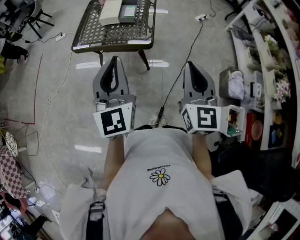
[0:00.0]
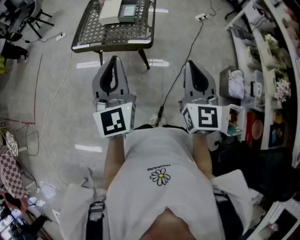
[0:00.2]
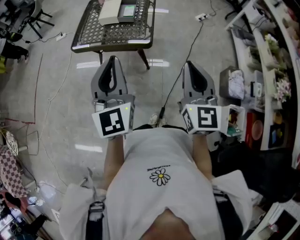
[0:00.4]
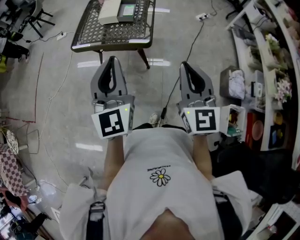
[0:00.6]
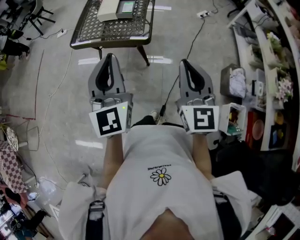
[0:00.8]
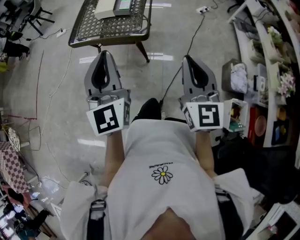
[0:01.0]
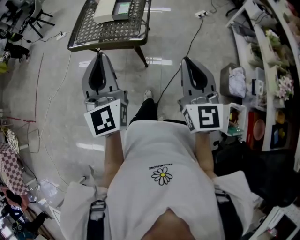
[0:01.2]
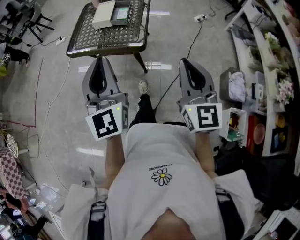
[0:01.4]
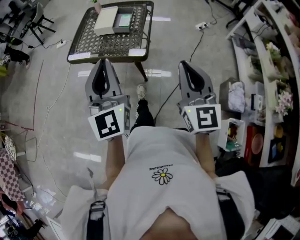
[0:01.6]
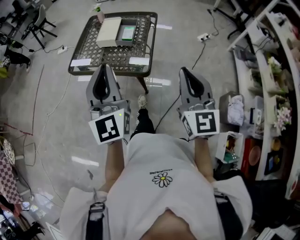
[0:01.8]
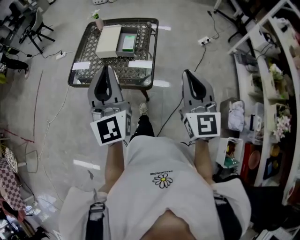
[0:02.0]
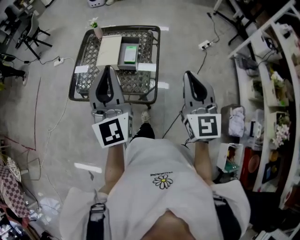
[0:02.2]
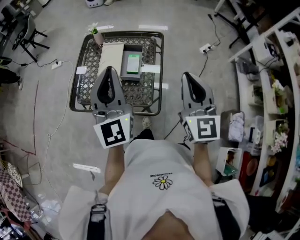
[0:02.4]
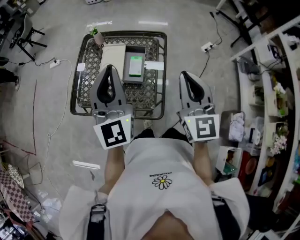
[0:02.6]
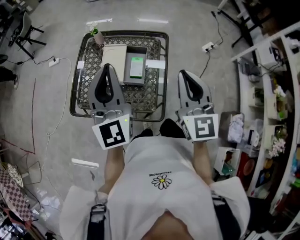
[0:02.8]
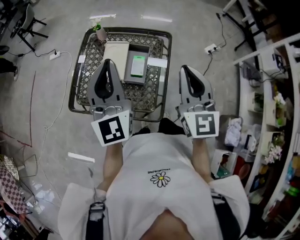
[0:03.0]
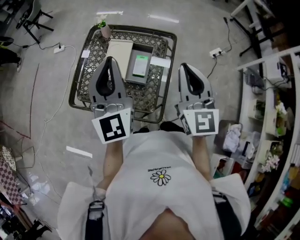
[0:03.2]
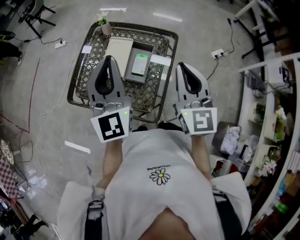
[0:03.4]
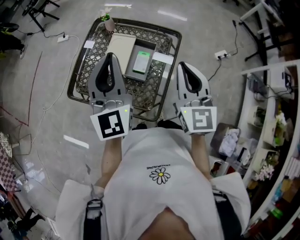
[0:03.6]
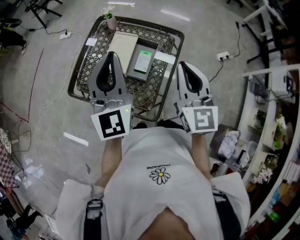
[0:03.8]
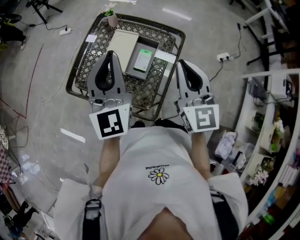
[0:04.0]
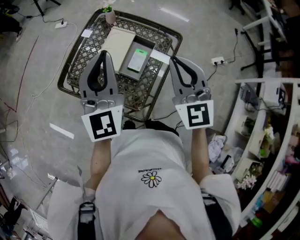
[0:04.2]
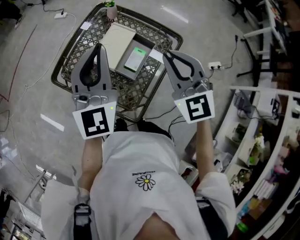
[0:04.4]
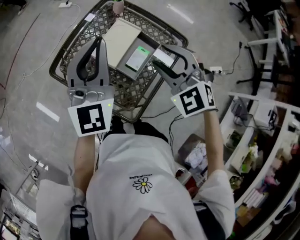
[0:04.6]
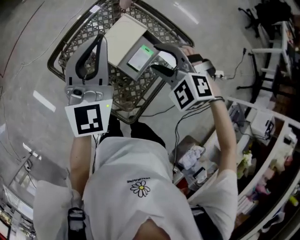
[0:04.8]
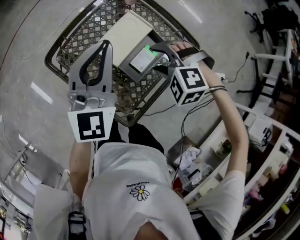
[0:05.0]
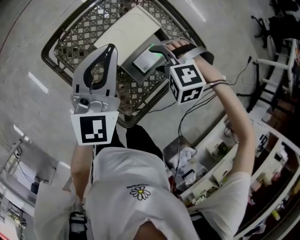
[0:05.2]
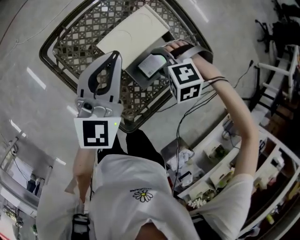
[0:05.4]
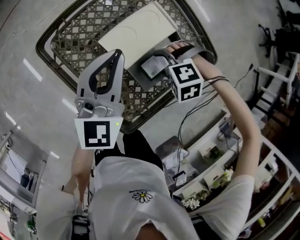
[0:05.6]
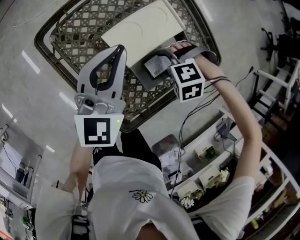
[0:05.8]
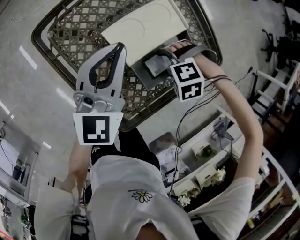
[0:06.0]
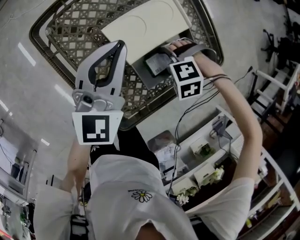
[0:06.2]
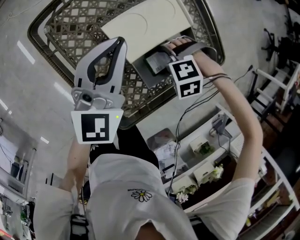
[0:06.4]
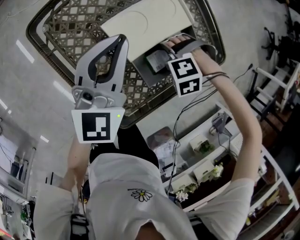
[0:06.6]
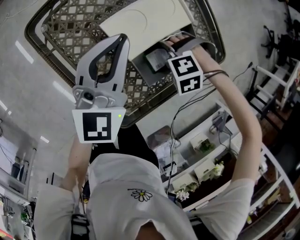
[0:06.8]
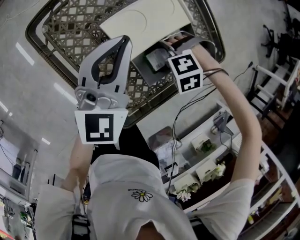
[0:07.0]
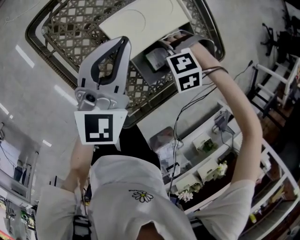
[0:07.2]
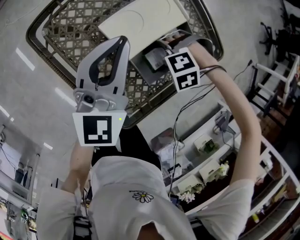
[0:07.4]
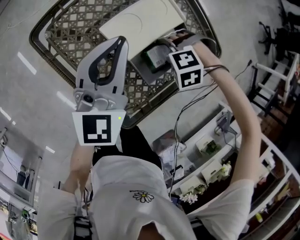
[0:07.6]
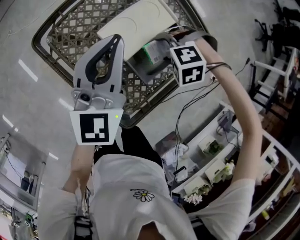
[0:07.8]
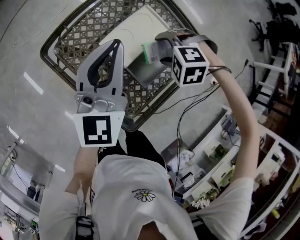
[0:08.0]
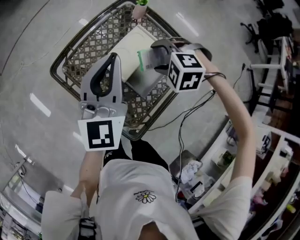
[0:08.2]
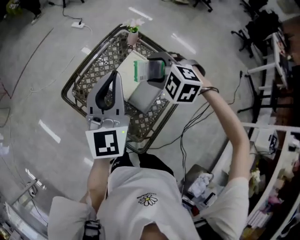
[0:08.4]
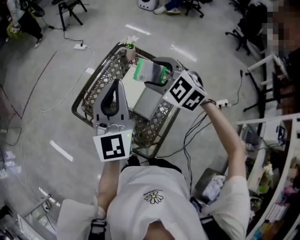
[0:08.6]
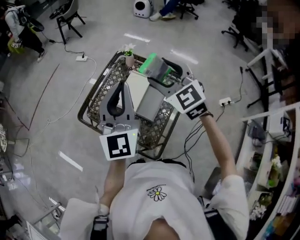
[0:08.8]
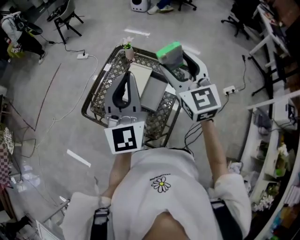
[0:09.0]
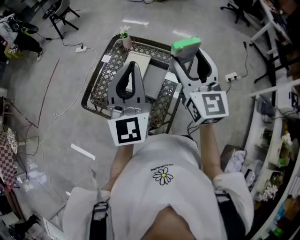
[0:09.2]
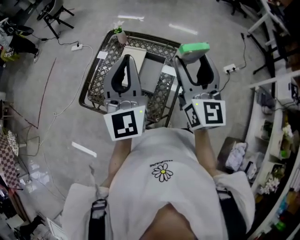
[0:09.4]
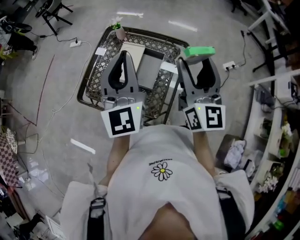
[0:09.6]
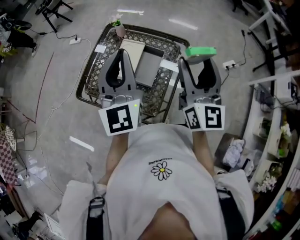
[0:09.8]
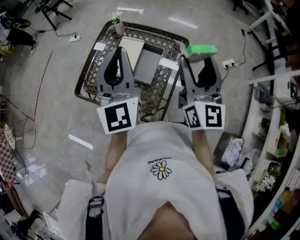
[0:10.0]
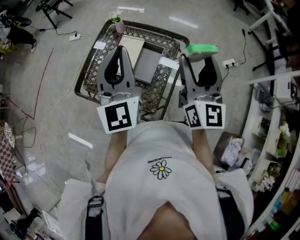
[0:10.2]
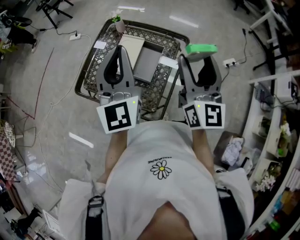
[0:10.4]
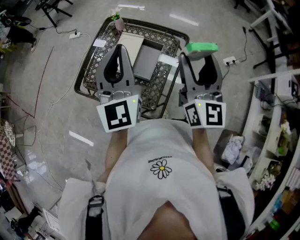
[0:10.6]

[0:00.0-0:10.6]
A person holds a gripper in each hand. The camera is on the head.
0:00.0 to 0:01.6: Both grippers move forward, about 5 cm.
0:01.6 to 0:03.0: The pair of grippers is taken forward, about 40 cm.
0:03.0 to 0:04.6: The right gripper changes place by approximately 15 cm, turns by some 70 degrees, and opens its fingers. The left gripper moves roughly 5 cm.
0:04.6 to 0:06.0: Both grippers travel together downward, roughly 30 cm. The right gripper tips its fingers downward by roughly 50 degrees.
0:06.0 to 0:07.6: There are only small adjustments of the grippers.
0:07.6 to 0:09.0: The left gripper travels upward by roughly 25 cm, while the right gripper is displaced upward by roughly 50 cm, and points its fingers about 80 degrees further upward.
0:09.0 to 0:10.6: The right gripper shifts roughly 15 cm backward and to the right, and changes its angle by about 30 degrees.

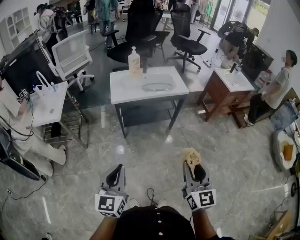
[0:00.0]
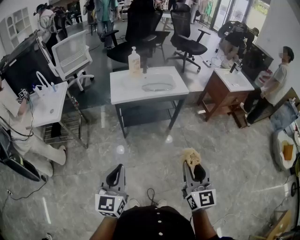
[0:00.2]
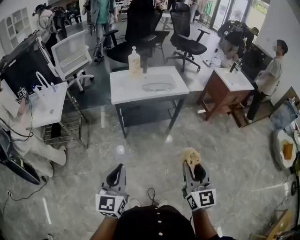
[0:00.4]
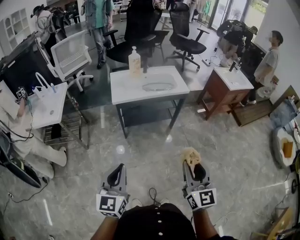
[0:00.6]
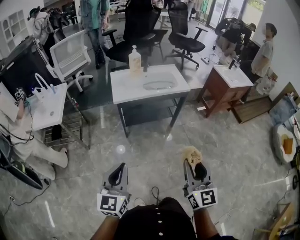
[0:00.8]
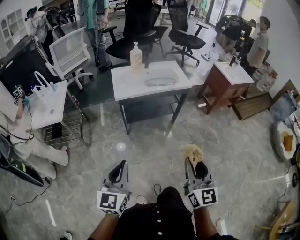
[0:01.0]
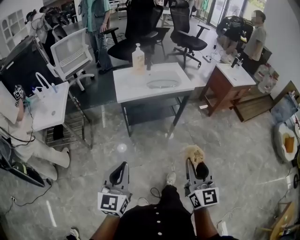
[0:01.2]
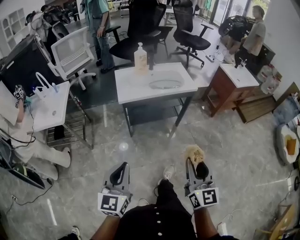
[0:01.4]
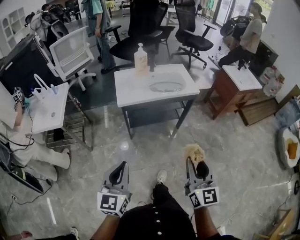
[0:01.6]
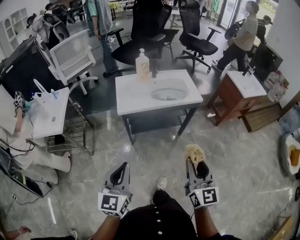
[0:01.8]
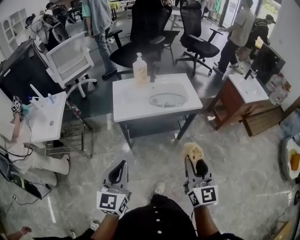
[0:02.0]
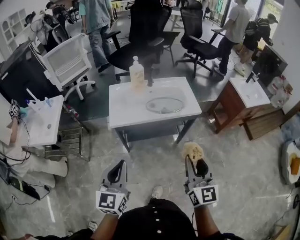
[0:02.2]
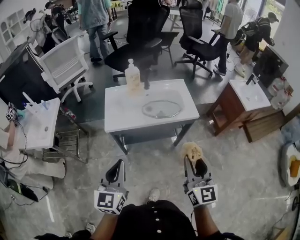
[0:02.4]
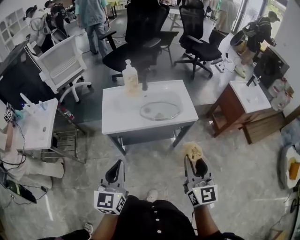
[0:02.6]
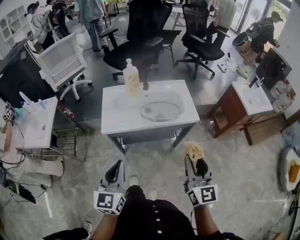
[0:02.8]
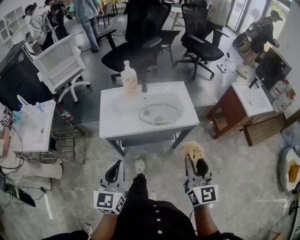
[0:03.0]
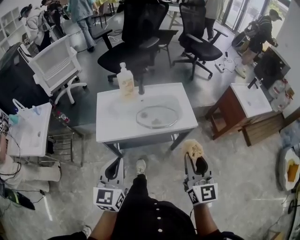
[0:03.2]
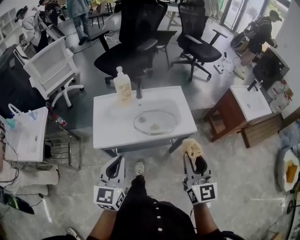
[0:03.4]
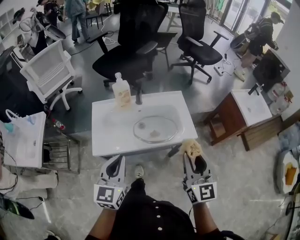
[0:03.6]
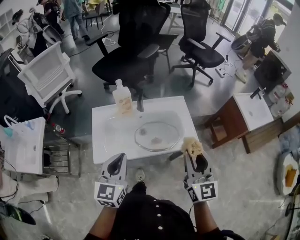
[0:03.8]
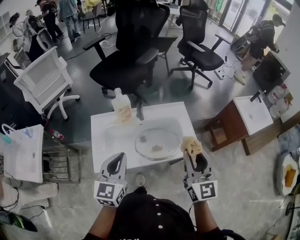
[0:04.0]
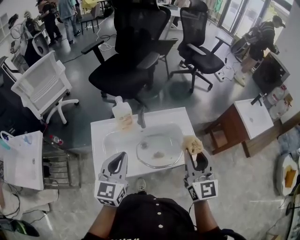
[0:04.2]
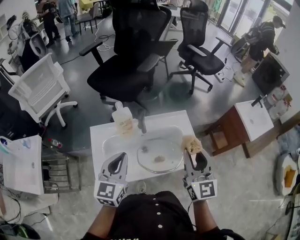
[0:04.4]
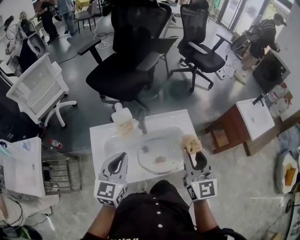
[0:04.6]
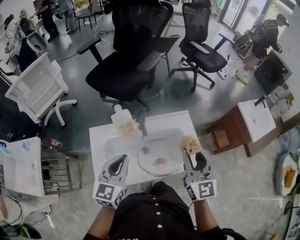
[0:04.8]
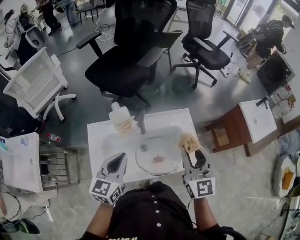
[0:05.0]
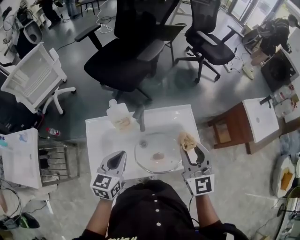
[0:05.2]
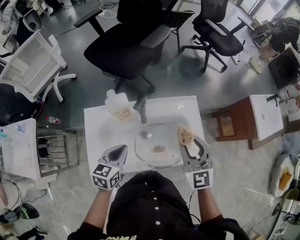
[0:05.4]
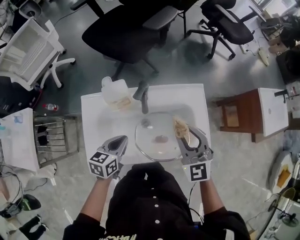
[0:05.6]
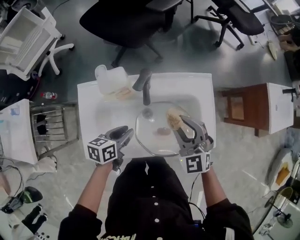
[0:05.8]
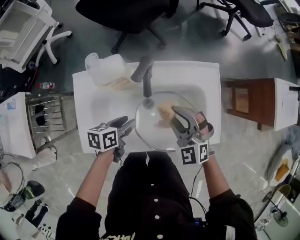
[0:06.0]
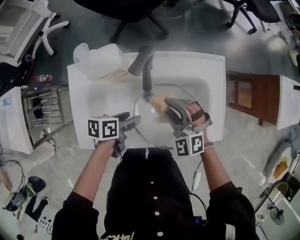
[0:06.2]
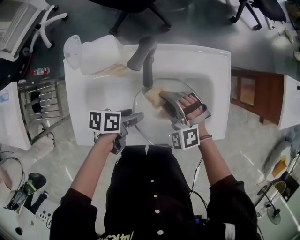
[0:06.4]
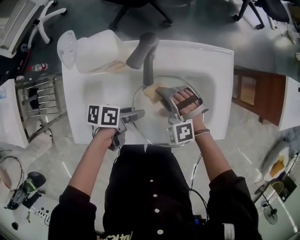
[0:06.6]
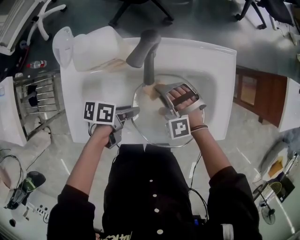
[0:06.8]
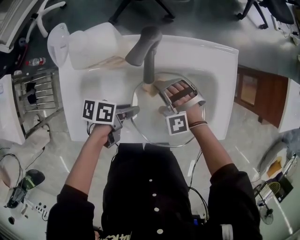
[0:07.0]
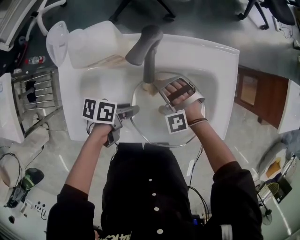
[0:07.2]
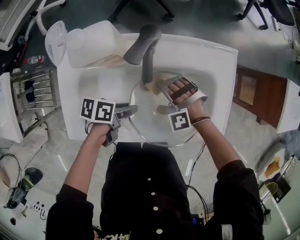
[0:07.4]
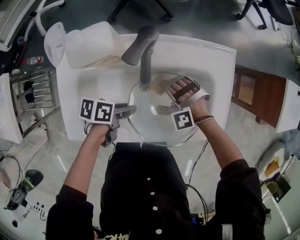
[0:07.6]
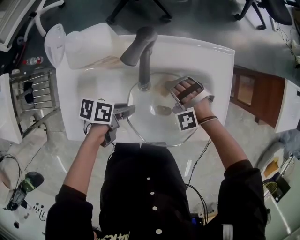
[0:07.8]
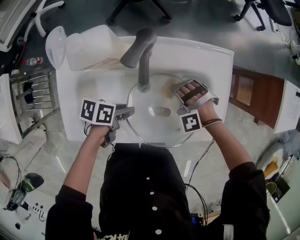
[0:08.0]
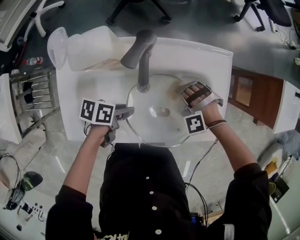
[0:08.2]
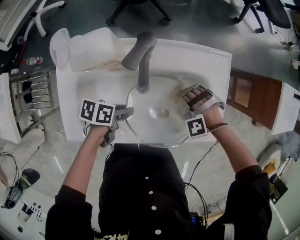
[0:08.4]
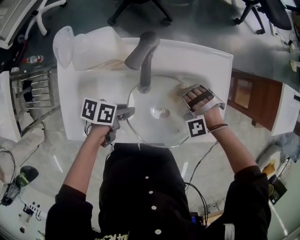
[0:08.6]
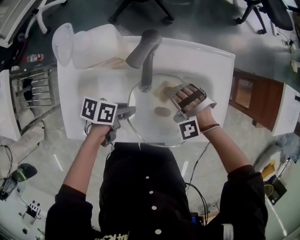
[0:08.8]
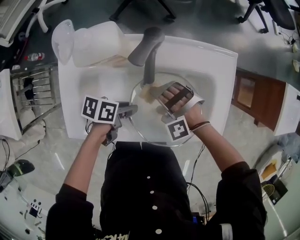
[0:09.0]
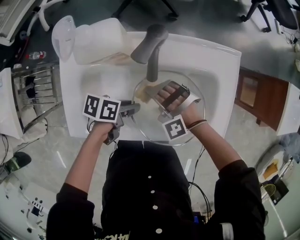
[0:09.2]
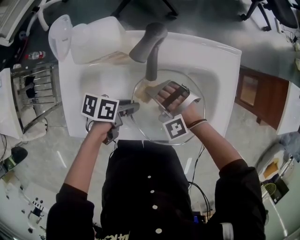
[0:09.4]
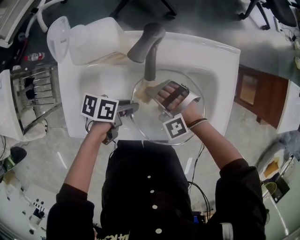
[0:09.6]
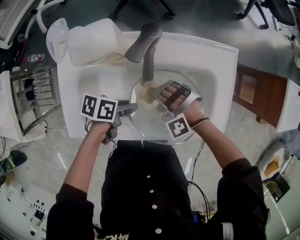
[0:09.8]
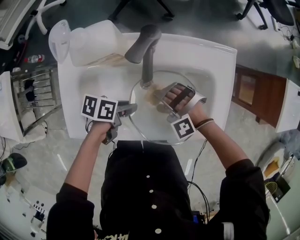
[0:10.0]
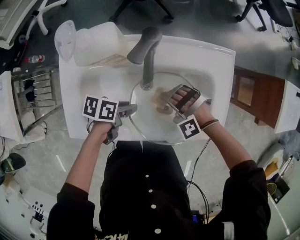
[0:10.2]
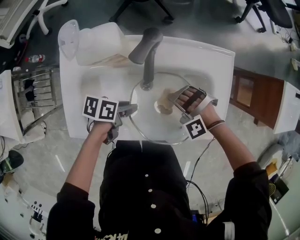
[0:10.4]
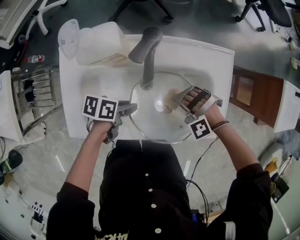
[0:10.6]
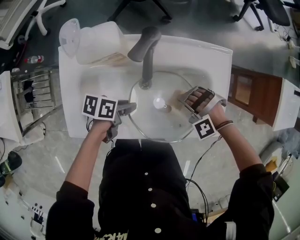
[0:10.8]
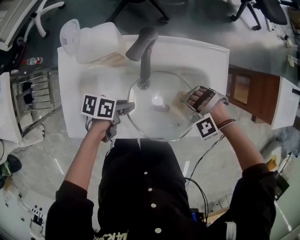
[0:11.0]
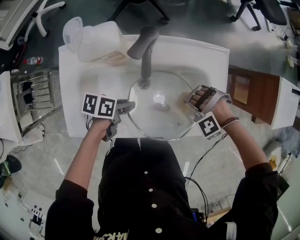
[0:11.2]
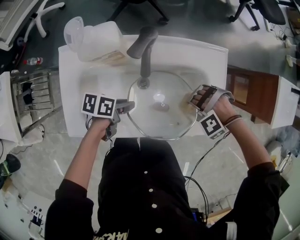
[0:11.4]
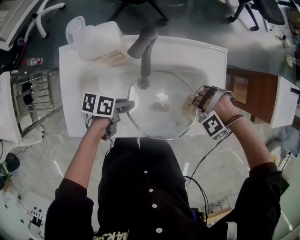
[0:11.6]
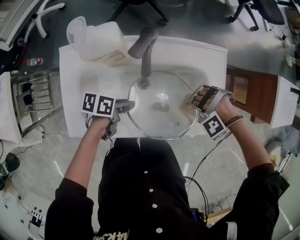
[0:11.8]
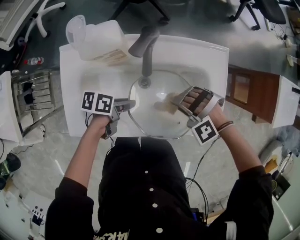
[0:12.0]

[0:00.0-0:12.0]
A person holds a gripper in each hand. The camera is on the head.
0:00.0 to 0:01.6: Both grippers travel together forward and to the left, approximately 10 cm.
0:01.6 to 0:03.0: Both grippers move forward, about 30 cm.
0:03.0 to 0:04.4: The grippers both shift forward by approximately 35 cm.
0:04.4 to 0:06.0: The left gripper is displaced downward by about 30 cm, tips its fingers downward by about 30 degrees, and opens; the right gripper shifts roughly 30 cm downward and forward, and tilts its fingers about 30 degrees downward.
0:06.0 to 0:07.6: The right gripper heads downward, covering some 20 cm, and rotates around the line of its fingers by some 50 degrees, counterclockwise from behind; the left gripper heads downward, covering approximately 5 cm, and rotates approximately 20 degrees.
0:07.6 to 0:09.0: The right gripper ends up roughly 5 cm from where it was.
0:09.0 to 0:10.4: The right gripper ends up roughly 10 cm from where it was.
0:10.4 to 0:12.0: The right gripper moves upward, roughly 5 cm.

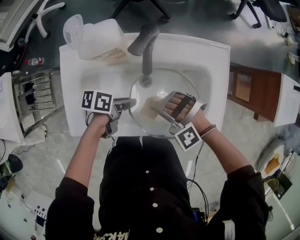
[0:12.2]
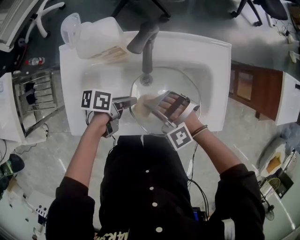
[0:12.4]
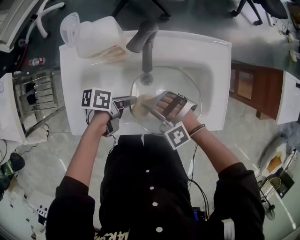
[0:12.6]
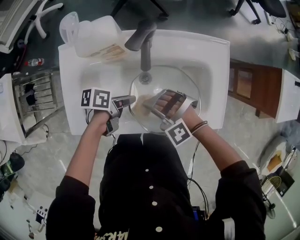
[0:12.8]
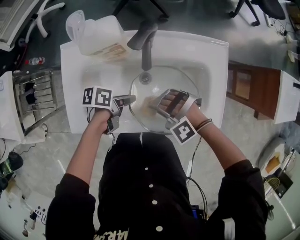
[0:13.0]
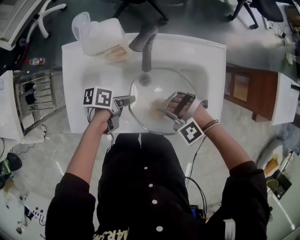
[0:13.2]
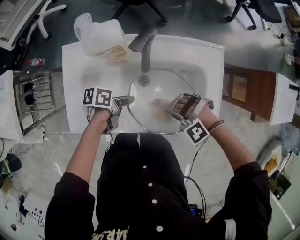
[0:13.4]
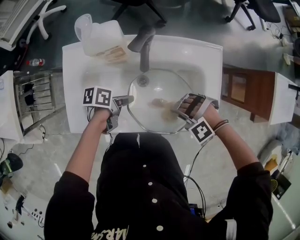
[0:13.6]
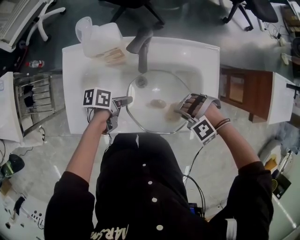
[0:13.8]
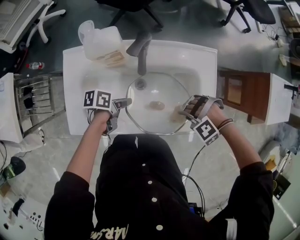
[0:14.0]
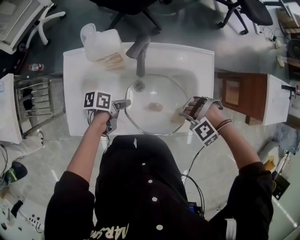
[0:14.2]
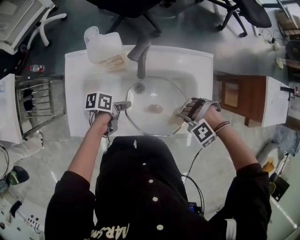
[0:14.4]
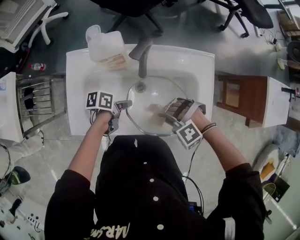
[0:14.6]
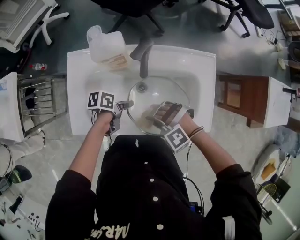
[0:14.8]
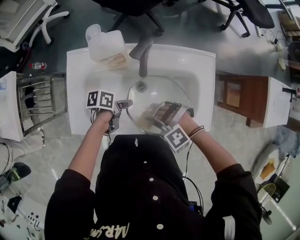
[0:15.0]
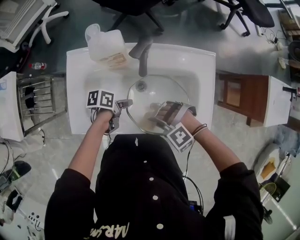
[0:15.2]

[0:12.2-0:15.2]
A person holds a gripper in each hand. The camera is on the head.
0:12.2 to 0:13.8: The right gripper ends up some 15 cm from where it was, and rotates some 30 degrees.
0:13.8 to 0:15.2: The right gripper shifts by roughly 10 cm.
